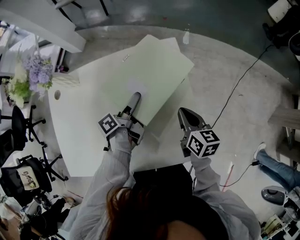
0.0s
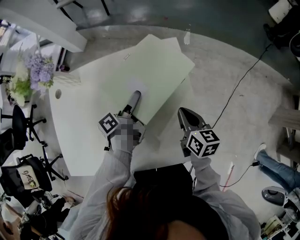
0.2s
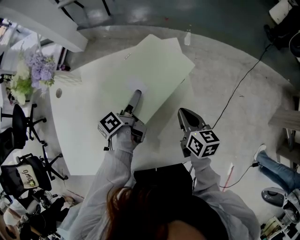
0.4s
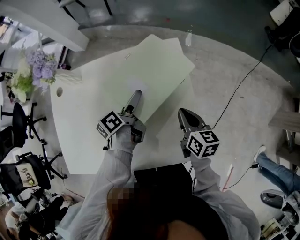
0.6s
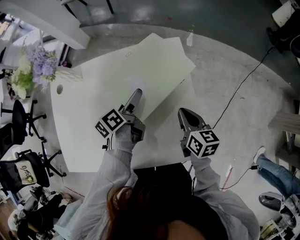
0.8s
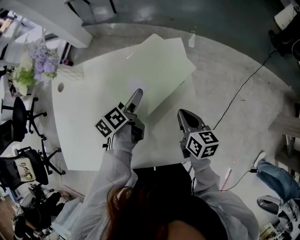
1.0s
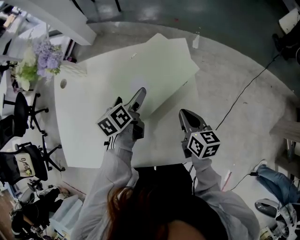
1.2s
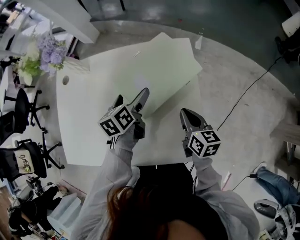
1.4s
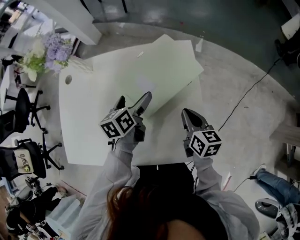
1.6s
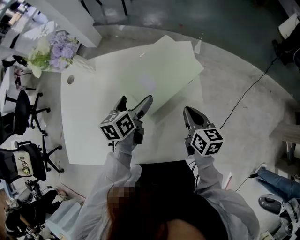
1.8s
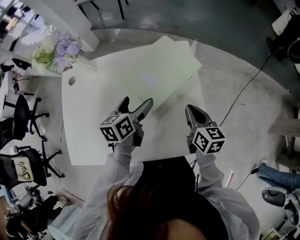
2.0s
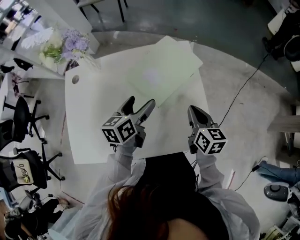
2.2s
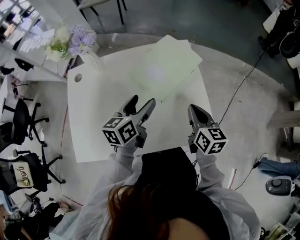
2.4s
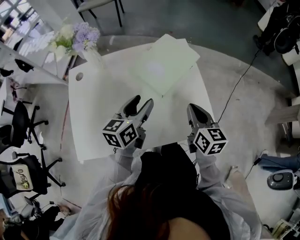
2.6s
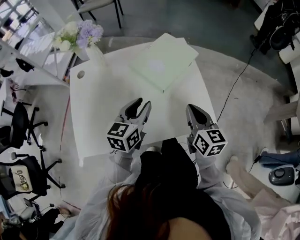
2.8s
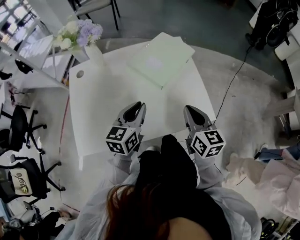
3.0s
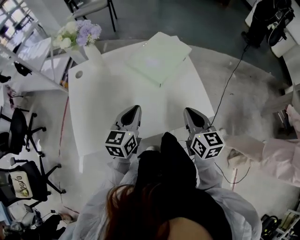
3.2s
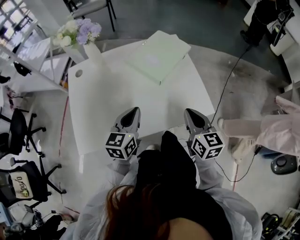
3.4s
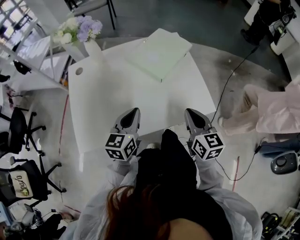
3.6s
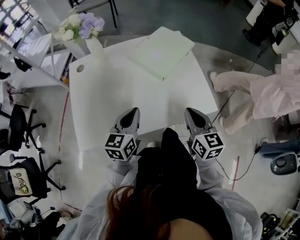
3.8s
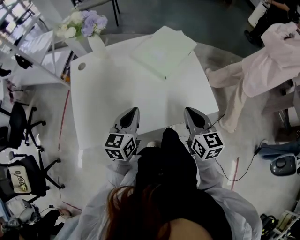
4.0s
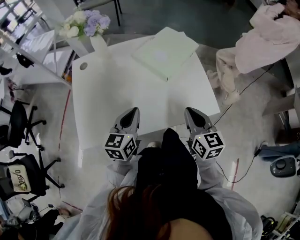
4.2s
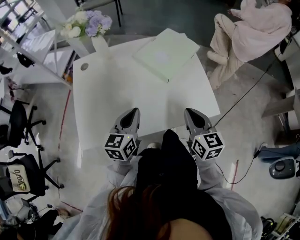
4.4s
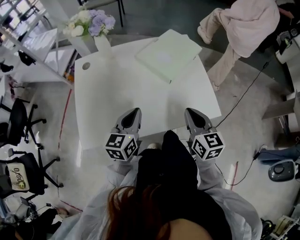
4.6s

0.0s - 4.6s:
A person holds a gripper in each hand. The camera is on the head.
0.0s - 1.6s: The left gripper moves approximately 5 cm, rotates around the line of its fingers by approximately 40 degrees, clockwise from behind, and opens its fingers.
1.6s - 3.0s: The right gripper travels backward, upward and to the left by approximately 25 cm, and swivels roughly 20 degrees; the left gripper shifts some 25 cm backward and upward, changes its angle by roughly 40 degrees, and closes up.
3.0s - 4.6s: The left gripper goes approximately 10 cm to the left and backward, while the right gripper moves some 5 cm.

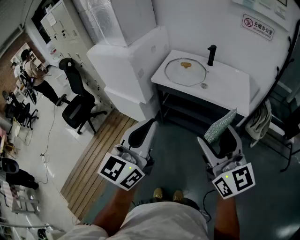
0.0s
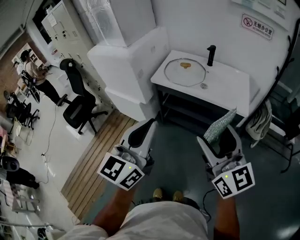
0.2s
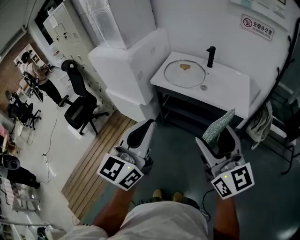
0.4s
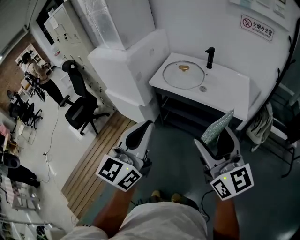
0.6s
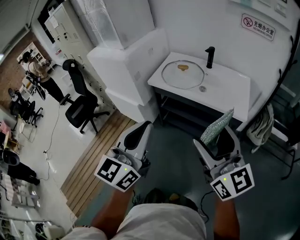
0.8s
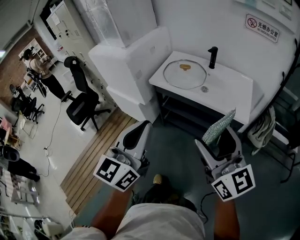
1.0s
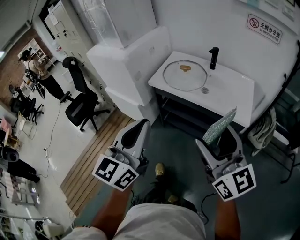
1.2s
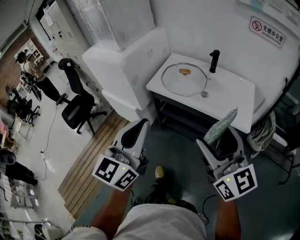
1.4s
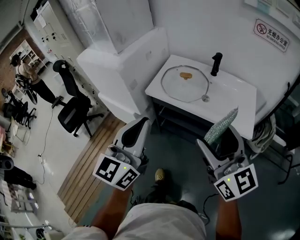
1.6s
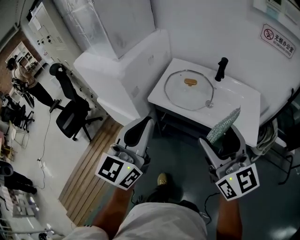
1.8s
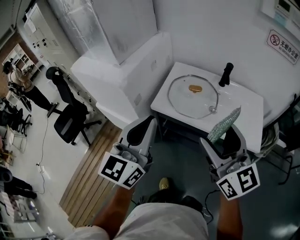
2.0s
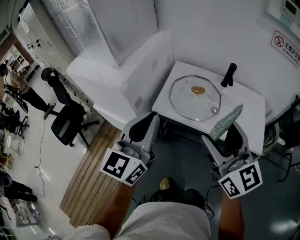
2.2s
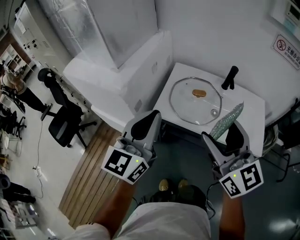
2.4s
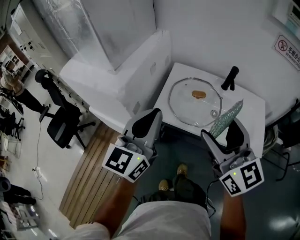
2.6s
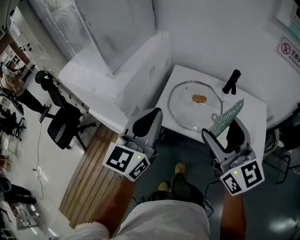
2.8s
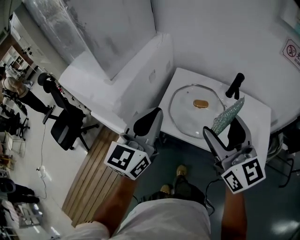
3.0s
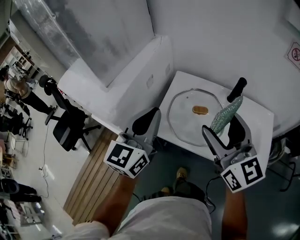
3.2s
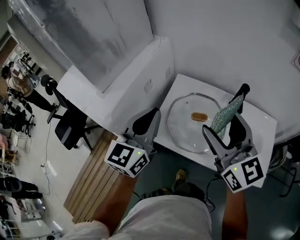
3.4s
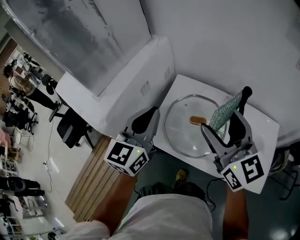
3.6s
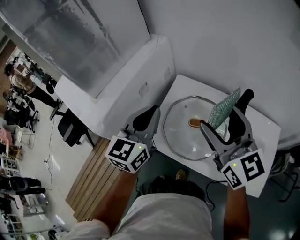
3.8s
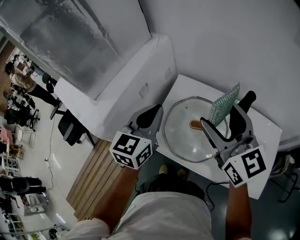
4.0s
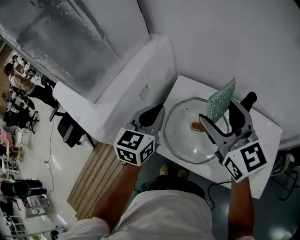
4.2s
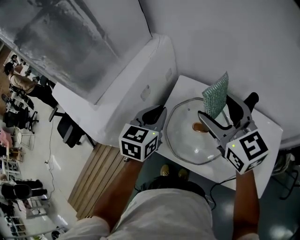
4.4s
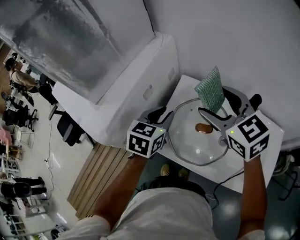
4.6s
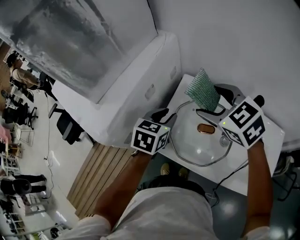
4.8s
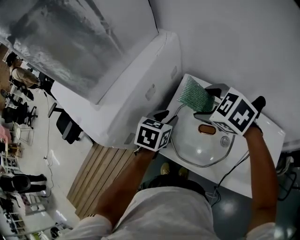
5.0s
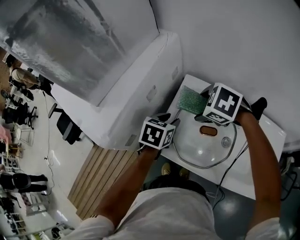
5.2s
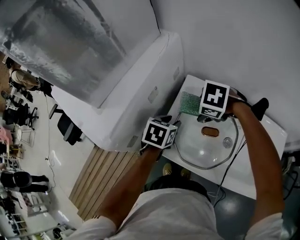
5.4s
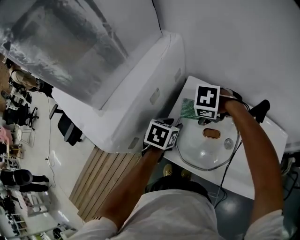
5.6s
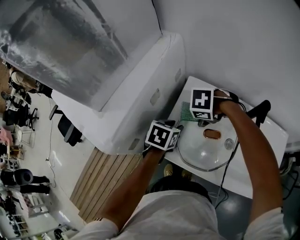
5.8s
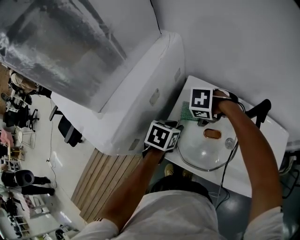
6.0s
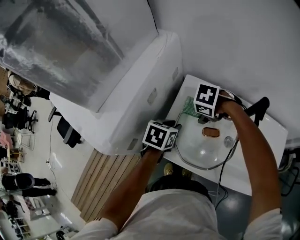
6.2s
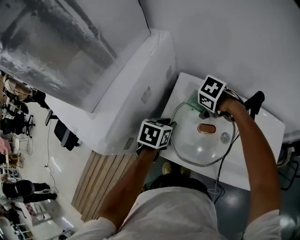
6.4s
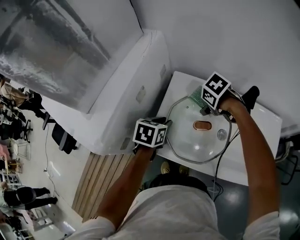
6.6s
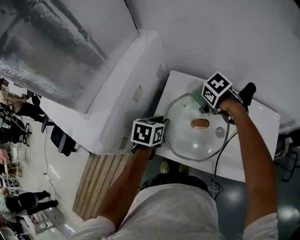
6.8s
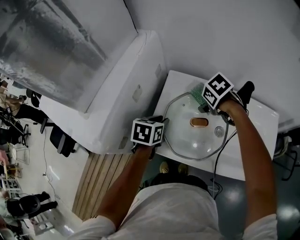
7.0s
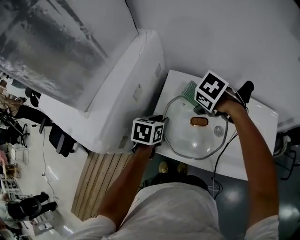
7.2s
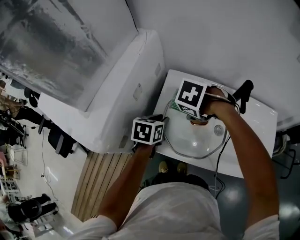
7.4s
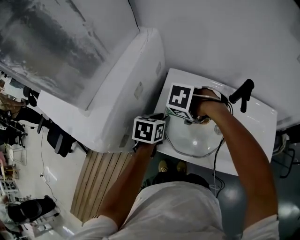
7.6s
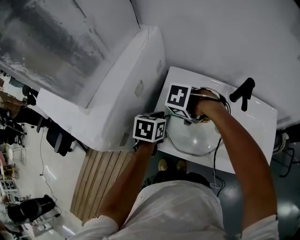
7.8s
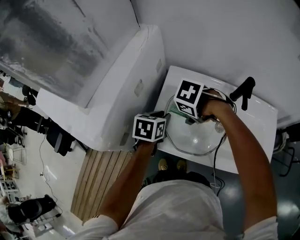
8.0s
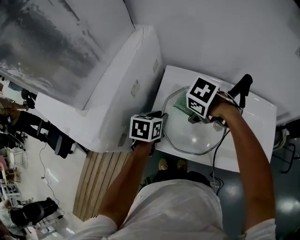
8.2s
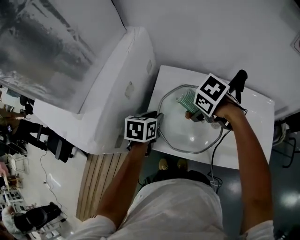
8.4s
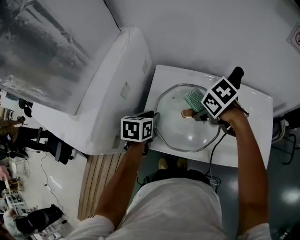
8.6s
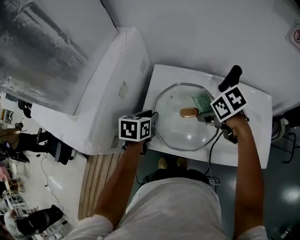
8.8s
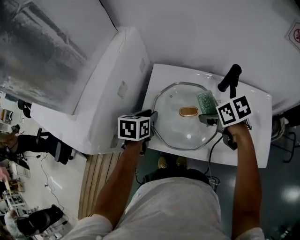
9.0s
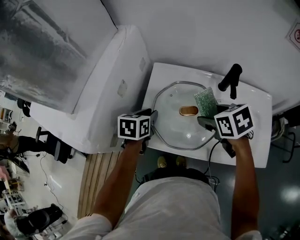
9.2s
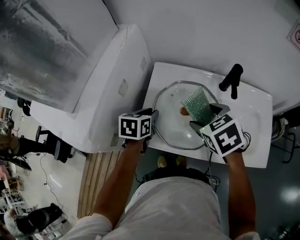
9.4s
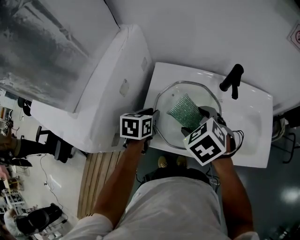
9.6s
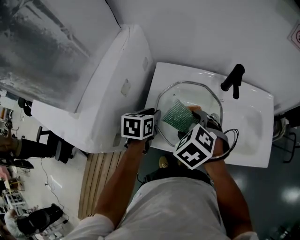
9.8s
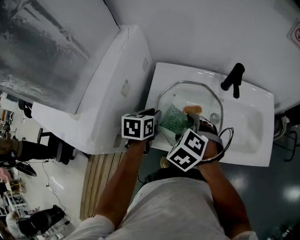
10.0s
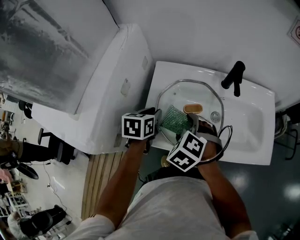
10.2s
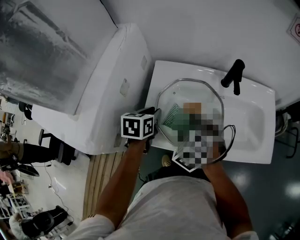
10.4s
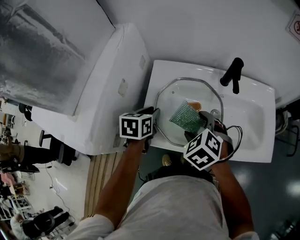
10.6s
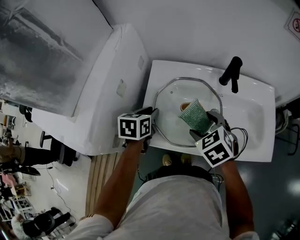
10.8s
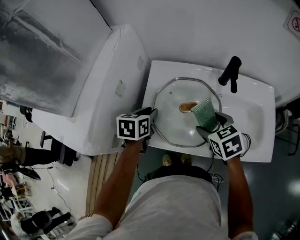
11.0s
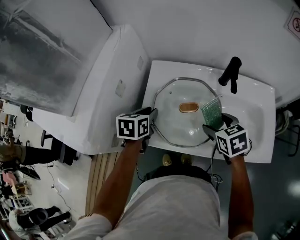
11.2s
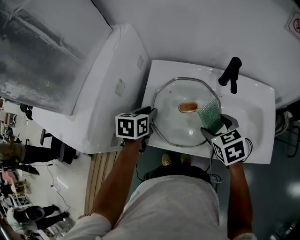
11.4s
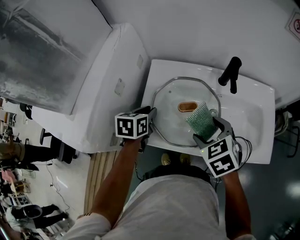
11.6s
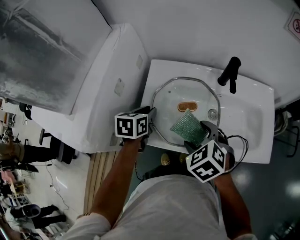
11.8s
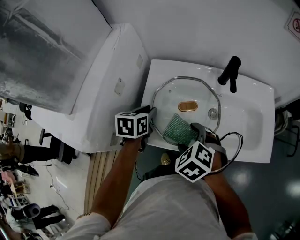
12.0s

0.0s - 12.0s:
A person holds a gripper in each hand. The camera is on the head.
0.0s - 1.6s: Both grippers travel together forward, roughly 15 cm.
1.6s - 3.0s: Both grippers travel together forward, about 25 cm.
3.0s - 4.4s: The left gripper is displaced forward and downward by some 20 cm, and turns by about 30 degrees. Meanwhile the right gripper heads forward, covering about 20 cm.
4.4s - 6.0s: The right gripper shifts about 25 cm downward, and tilts its fingers some 70 degrees downward. Meanwhile the left gripper travels downward by roughly 15 cm, changes its angle by approximately 30 degrees, and opens.
7.6s - 9.0s: The right gripper changes place by roughly 15 cm, and rotates around the line of its fingers by some 50 degrees, clockwise from behind.
9.0s - 10.4s: The right gripper shifts roughly 15 cm to the left and backward, and twists approximately 40 degrees counterclockwise, seen from behind.
10.4s - 12.0s: The right gripper travels to the right and back again, about 15 cm each way.

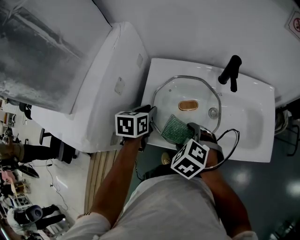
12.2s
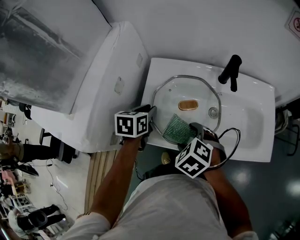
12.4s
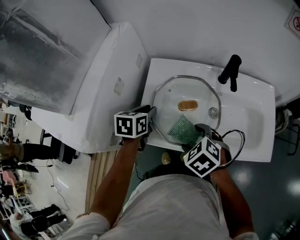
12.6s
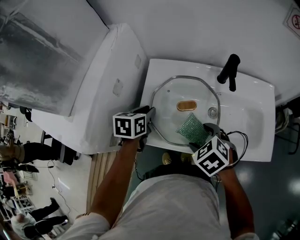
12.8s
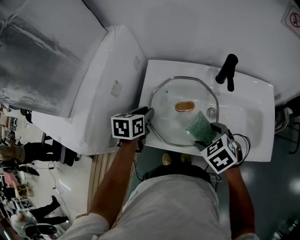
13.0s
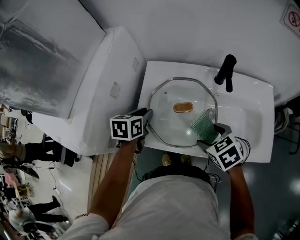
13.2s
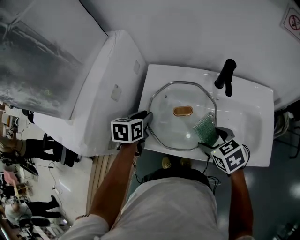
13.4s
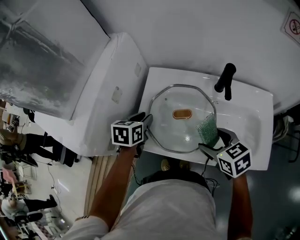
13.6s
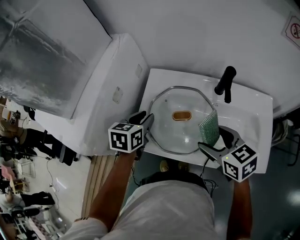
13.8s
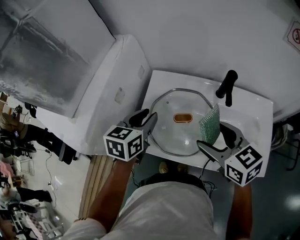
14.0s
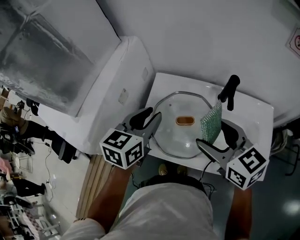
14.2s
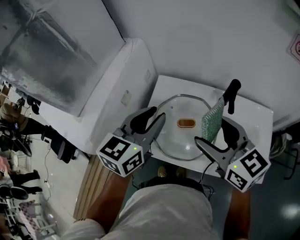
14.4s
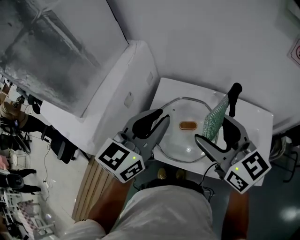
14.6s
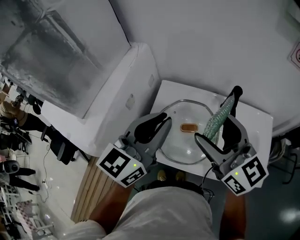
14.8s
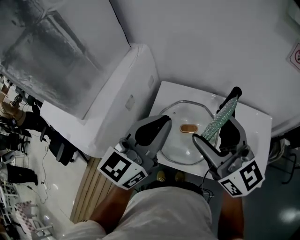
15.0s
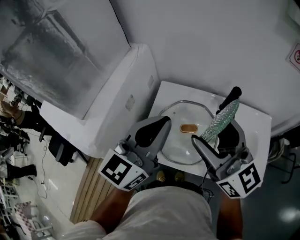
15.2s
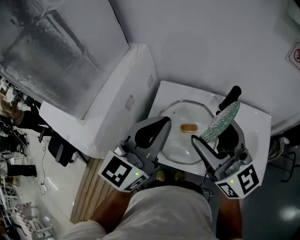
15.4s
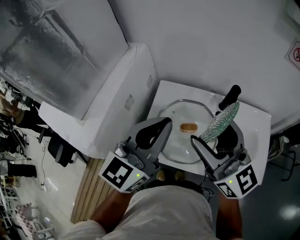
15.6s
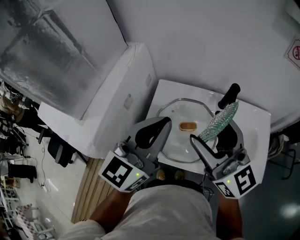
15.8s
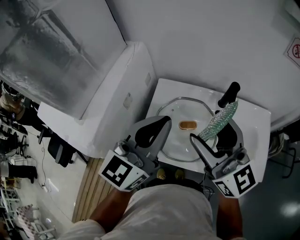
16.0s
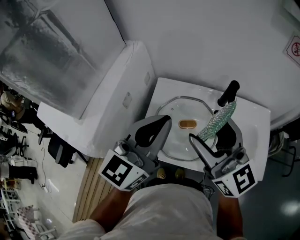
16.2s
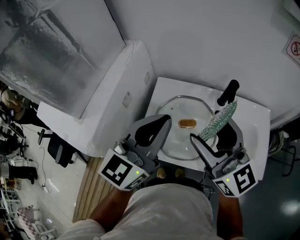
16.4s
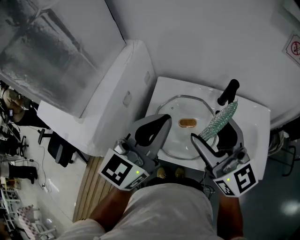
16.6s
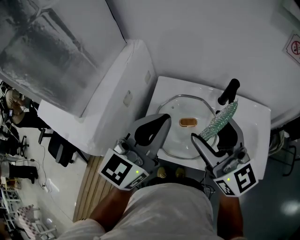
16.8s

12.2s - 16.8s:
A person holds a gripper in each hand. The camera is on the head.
12.2s - 13.8s: The right gripper goes approximately 15 cm to the right and upward, and swivels some 40 degrees; the left gripper travels upward by about 5 cm.
13.8s - 15.2s: The two grippers go roughly 20 cm upward. The right gripper angles its fingers upward, by approximately 40 degrees; the left gripper angles its fingers upward, by roughly 40 degrees, and closes up.
15.2s - 16.8s: There are only small adjustments of the grippers.

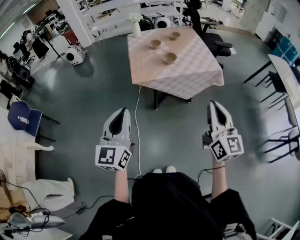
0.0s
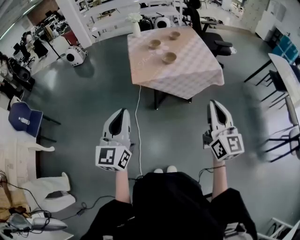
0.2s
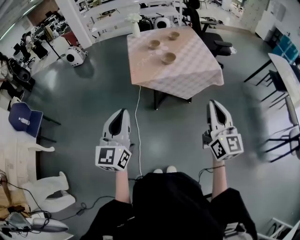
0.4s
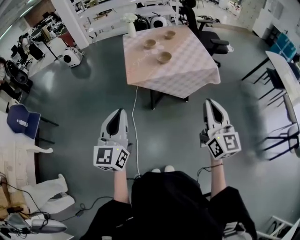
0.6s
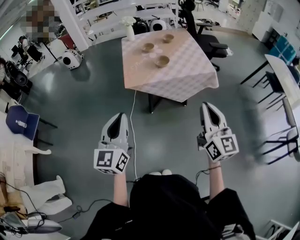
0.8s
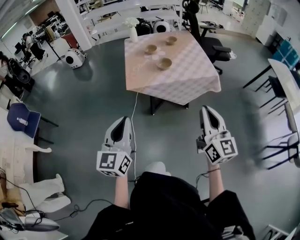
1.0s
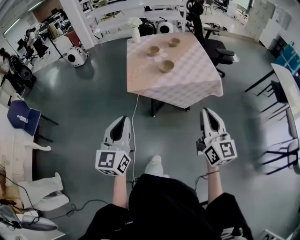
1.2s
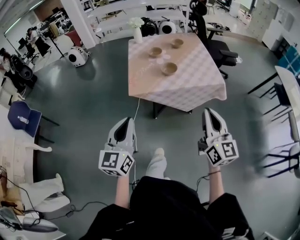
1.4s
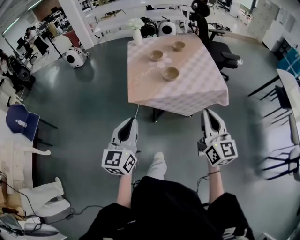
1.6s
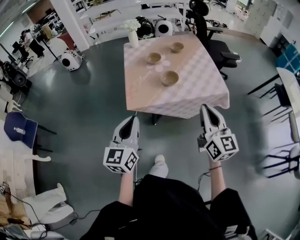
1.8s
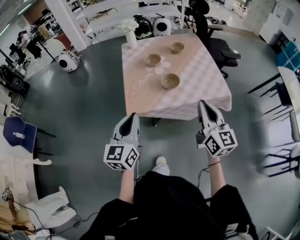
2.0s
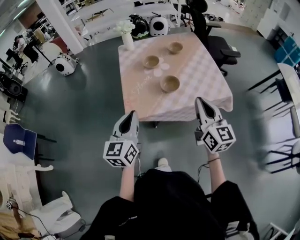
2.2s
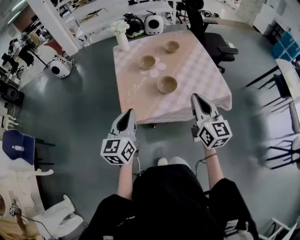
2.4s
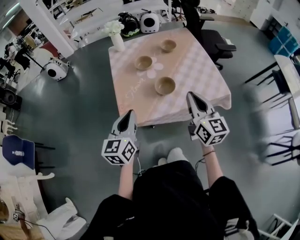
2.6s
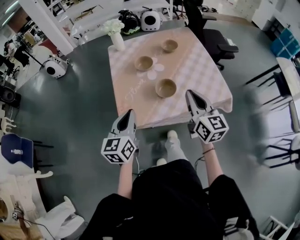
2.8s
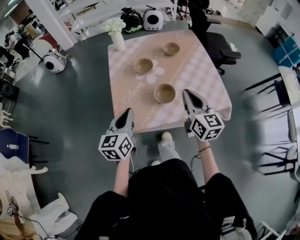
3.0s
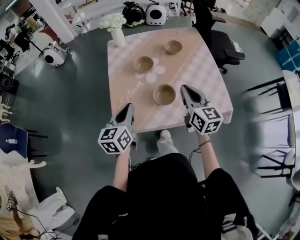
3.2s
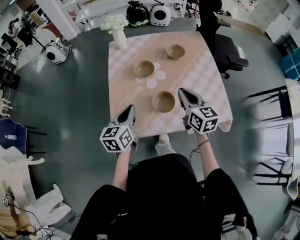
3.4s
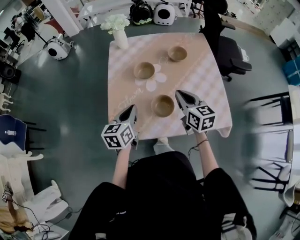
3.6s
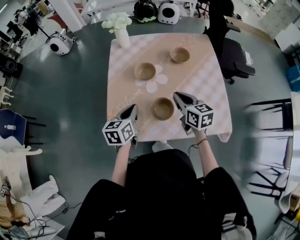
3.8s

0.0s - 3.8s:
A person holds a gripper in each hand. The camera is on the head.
0.0s - 1.2s: The left gripper shifts by approximately 5 cm. Meanwhile the right gripper moves forward, some 5 cm.
1.2s - 2.6s: The two grippers go approximately 35 cm forward.
2.6s - 3.8s: The grippers both shift forward and downward by some 25 cm. The left gripper turns by some 20 degrees. The right gripper swivels some 30 degrees.
